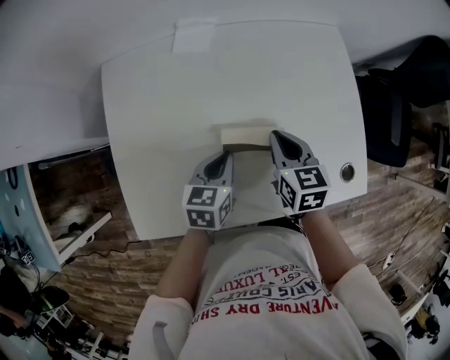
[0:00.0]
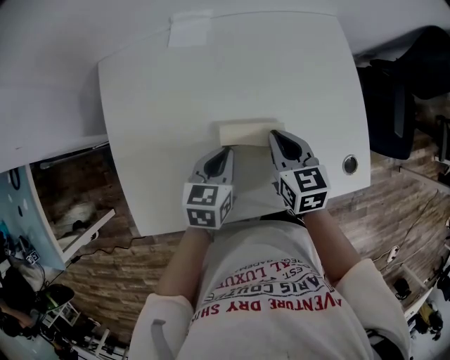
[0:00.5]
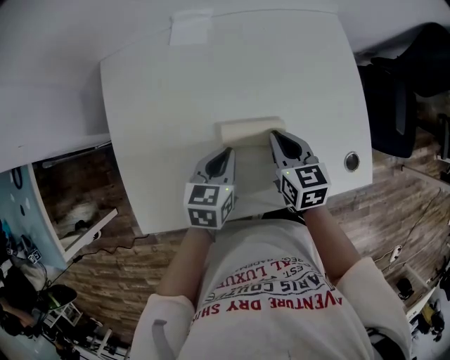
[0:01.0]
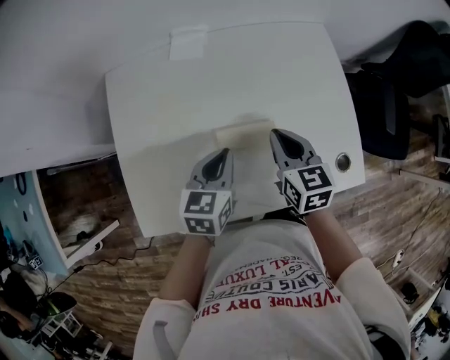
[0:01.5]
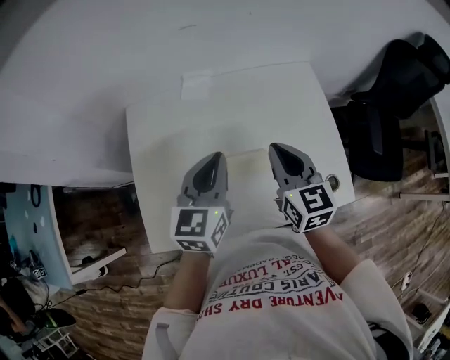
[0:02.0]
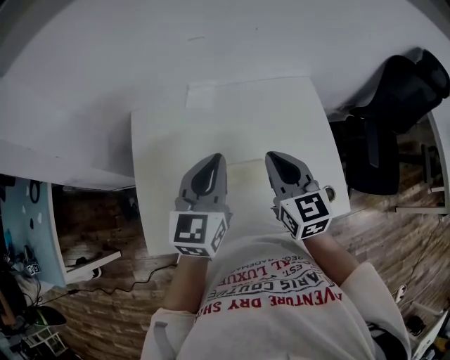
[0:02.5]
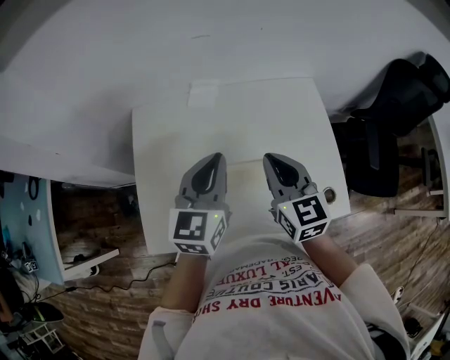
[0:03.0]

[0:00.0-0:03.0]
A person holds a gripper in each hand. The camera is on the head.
0:00.0 to 0:01.5: The right gripper moves roughly 5 cm. The left gripper travels upward by approximately 5 cm.
0:01.5 to 0:03.0: The grippers both shift upward by about 15 cm. The left gripper changes its angle by approximately 20 degrees.

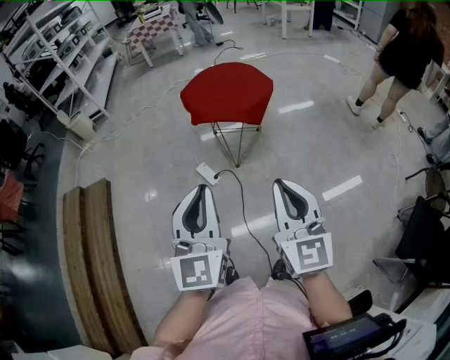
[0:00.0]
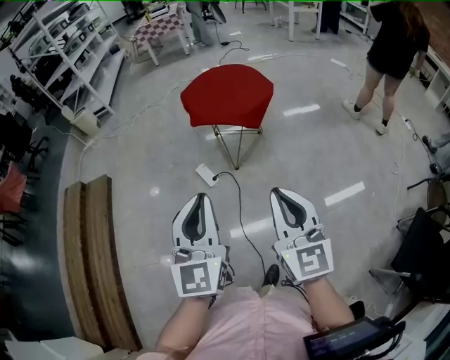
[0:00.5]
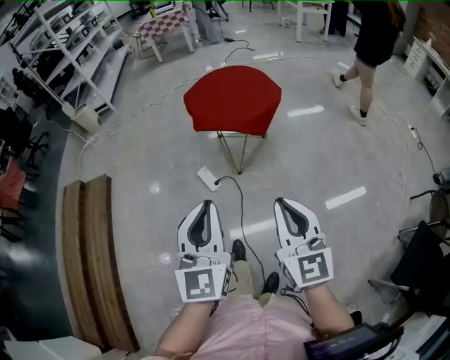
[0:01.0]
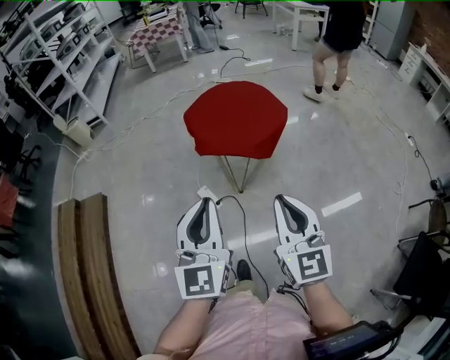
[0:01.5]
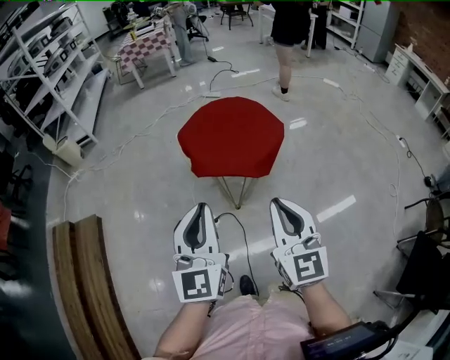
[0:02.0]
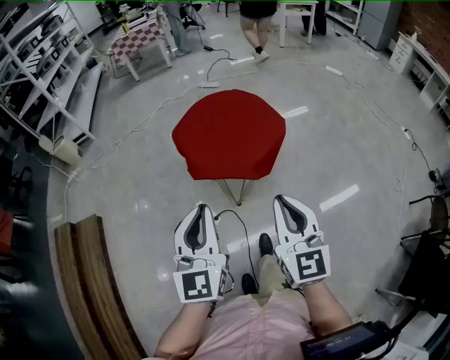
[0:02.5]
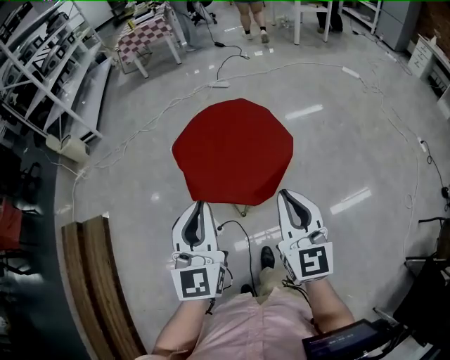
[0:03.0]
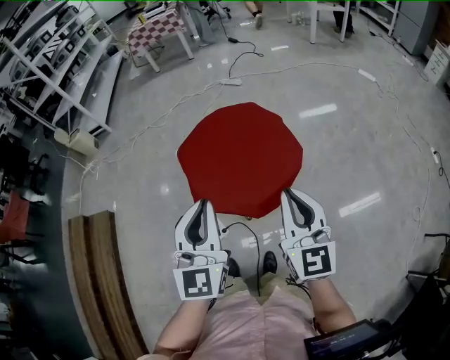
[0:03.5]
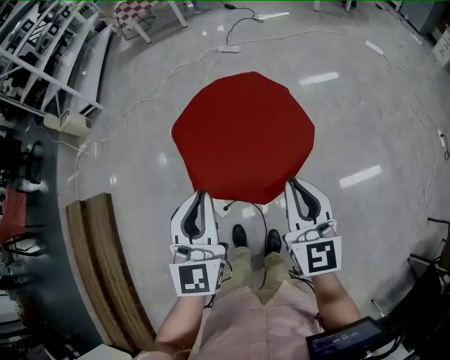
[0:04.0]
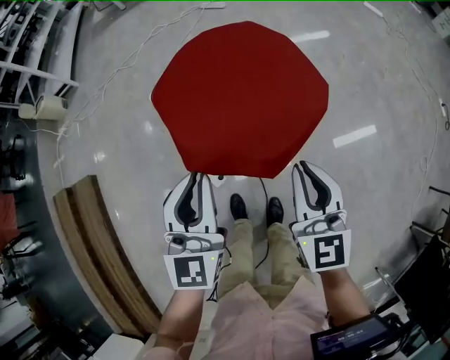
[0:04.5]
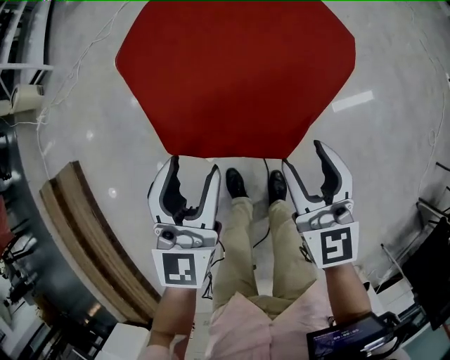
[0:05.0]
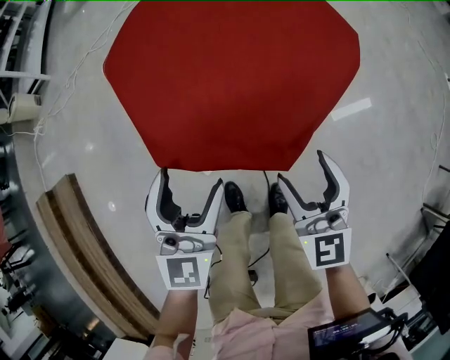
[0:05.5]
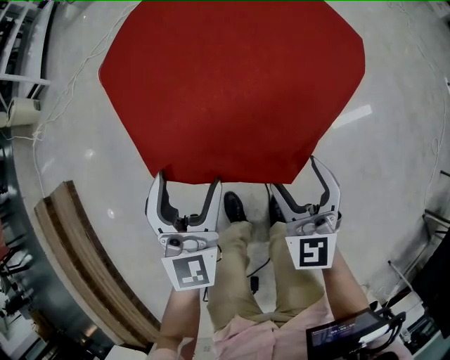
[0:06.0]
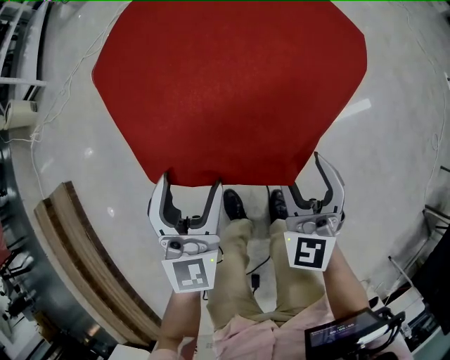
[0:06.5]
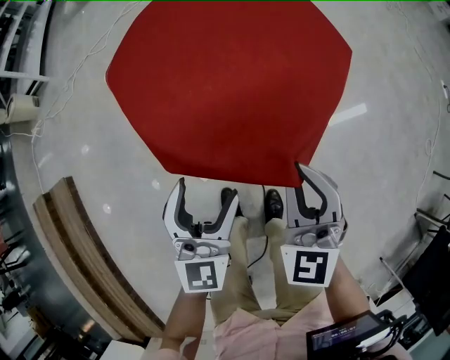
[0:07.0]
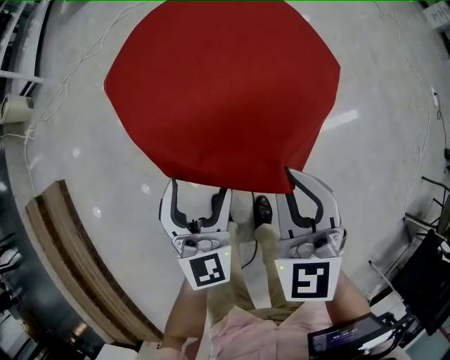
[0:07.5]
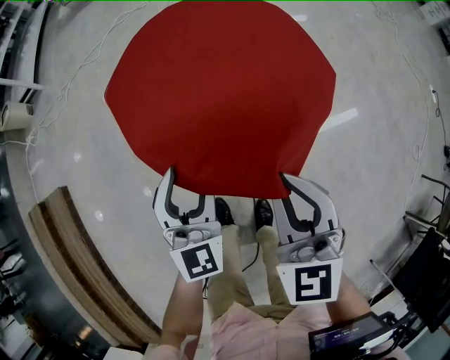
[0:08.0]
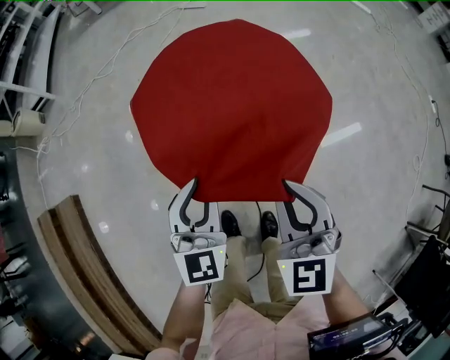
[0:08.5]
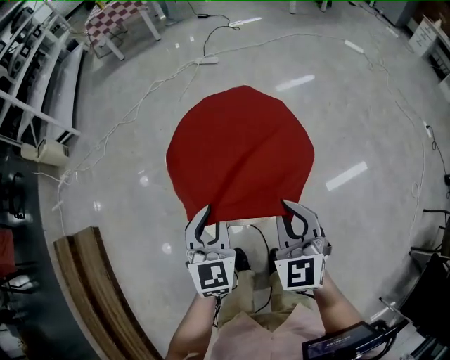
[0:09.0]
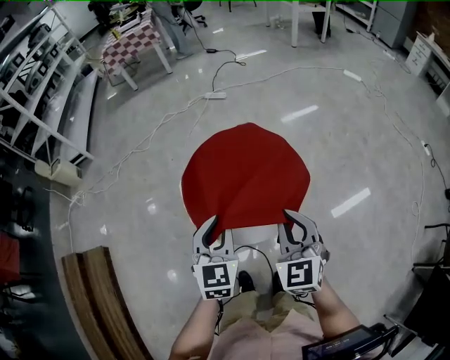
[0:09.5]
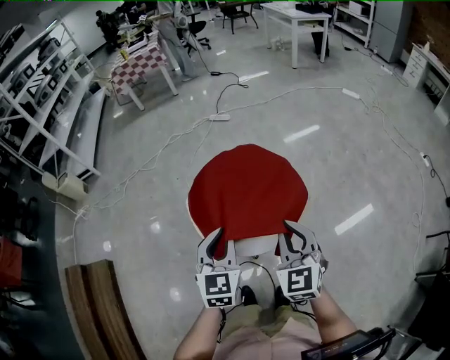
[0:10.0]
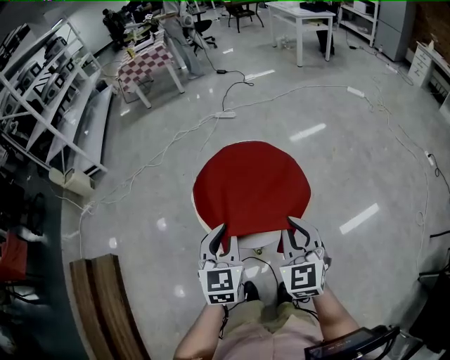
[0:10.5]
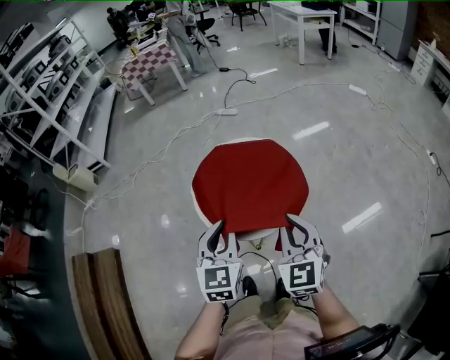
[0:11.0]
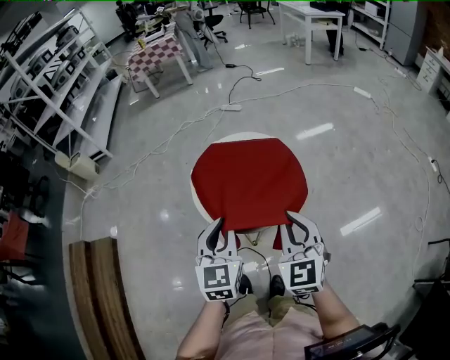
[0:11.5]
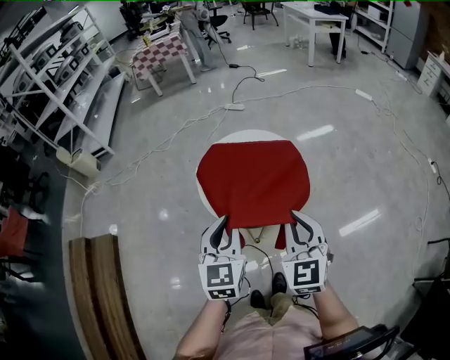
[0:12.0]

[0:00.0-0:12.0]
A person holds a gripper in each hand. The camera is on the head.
0:00.0 to 0:02.0: Both grippers move forward, about 25 cm.
0:02.0 to 0:04.0: Both grippers travel together forward, some 30 cm.
0:04.0 to 0:06.0: Both grippers travel together downward, some 35 cm. The right gripper turns by about 20 degrees, and opens up; the left gripper opens up.
0:06.0 to 0:08.0: The left gripper moves forward, about 5 cm. The right gripper is displaced upward by about 15 cm, and closes up.
0:08.0 to 0:10.0: Both grippers move upward, approximately 25 cm. The left gripper closes.
0:10.0 to 0:12.0: The grippers both shift backward by approximately 10 cm.

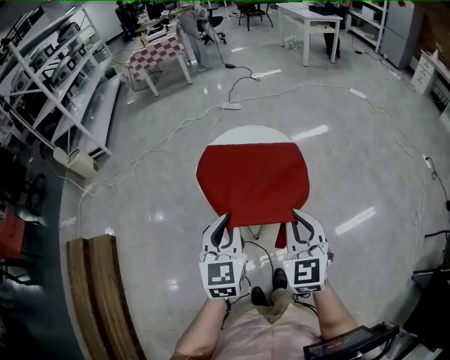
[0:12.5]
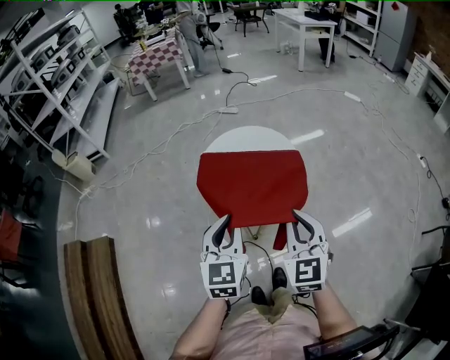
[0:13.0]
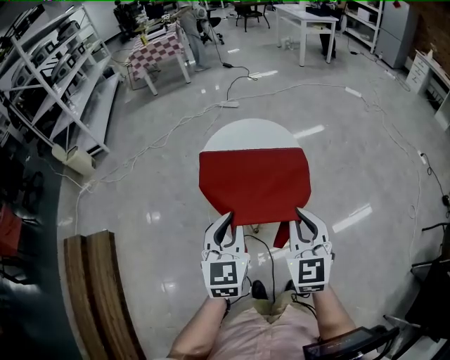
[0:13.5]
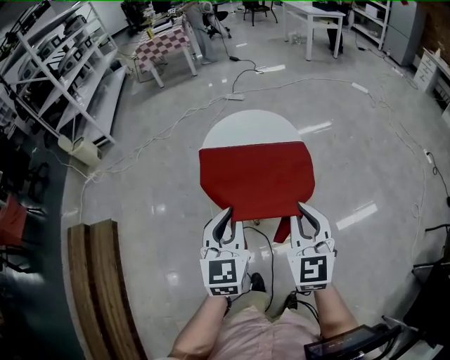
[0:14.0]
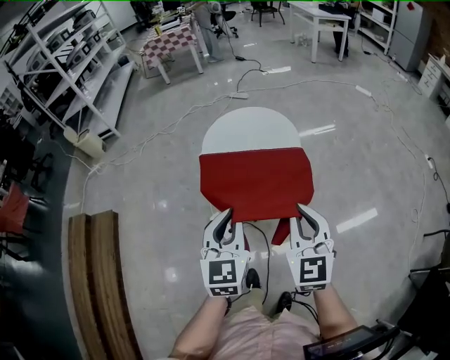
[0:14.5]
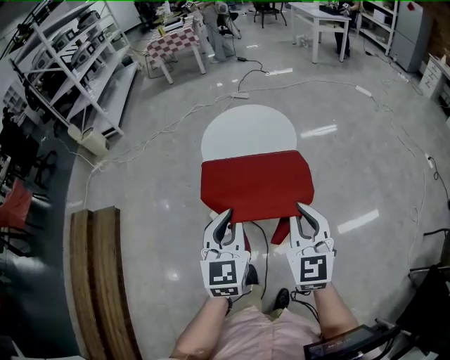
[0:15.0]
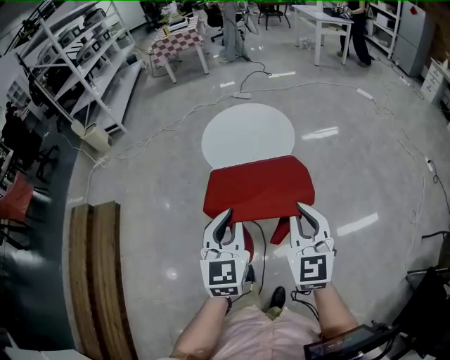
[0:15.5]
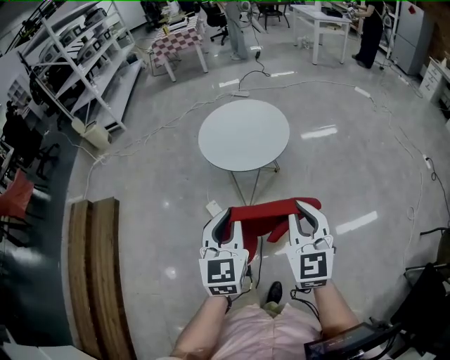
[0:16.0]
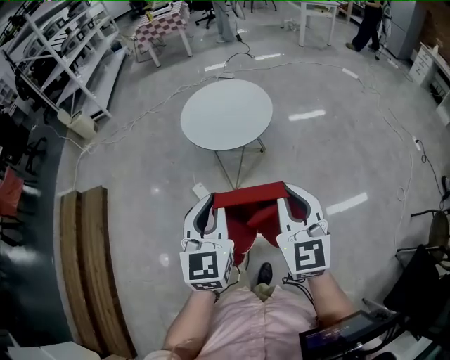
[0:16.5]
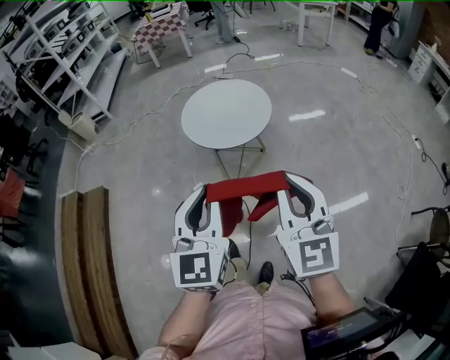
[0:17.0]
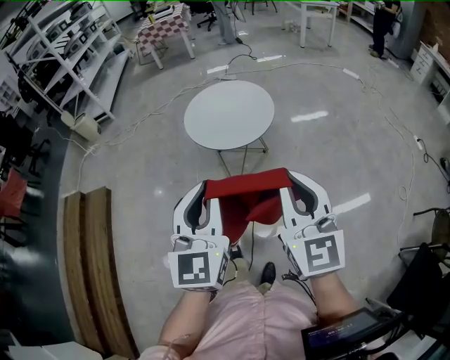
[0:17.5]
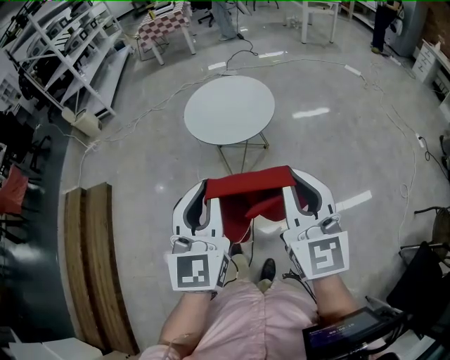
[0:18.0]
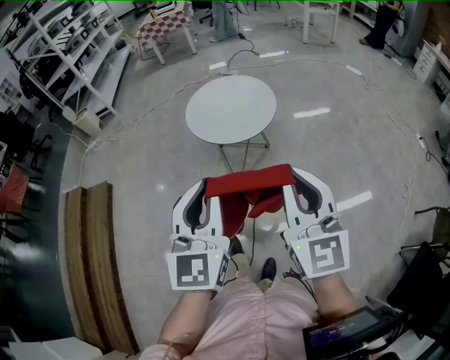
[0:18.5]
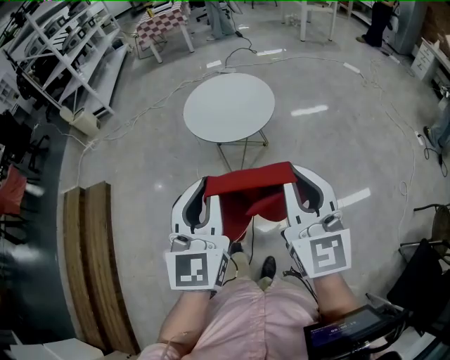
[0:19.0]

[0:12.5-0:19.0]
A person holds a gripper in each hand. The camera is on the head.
0:12.5 to 0:14.5: The grippers both shift backward by some 15 cm.
0:14.5 to 0:17.0: The grippers both shift backward, upward and to the right by about 20 cm.
0:17.0 to 0:19.0: There are only small adjustments of the grippers.

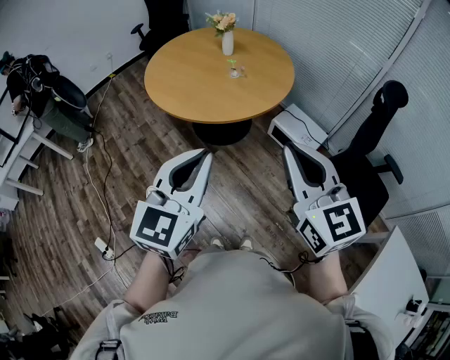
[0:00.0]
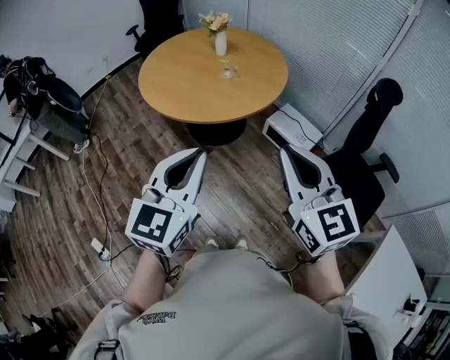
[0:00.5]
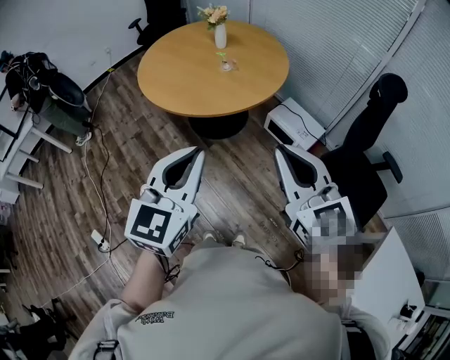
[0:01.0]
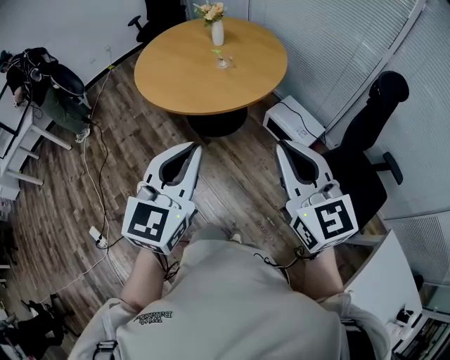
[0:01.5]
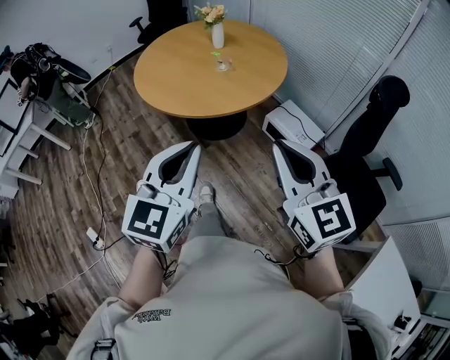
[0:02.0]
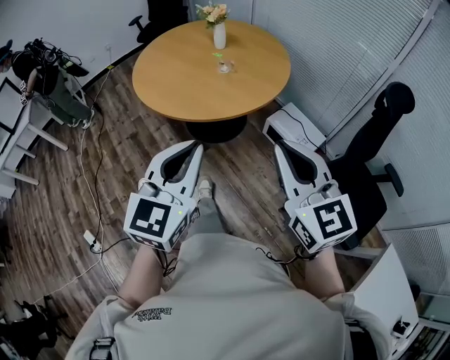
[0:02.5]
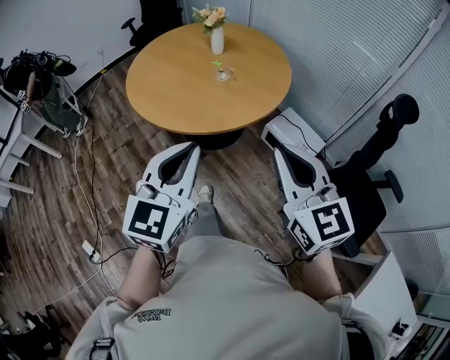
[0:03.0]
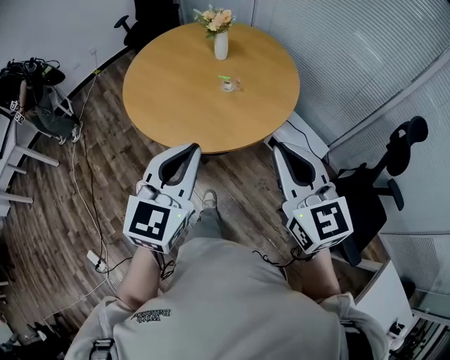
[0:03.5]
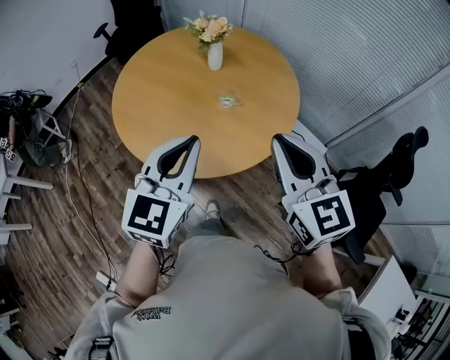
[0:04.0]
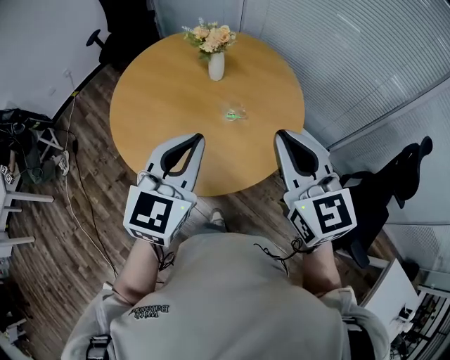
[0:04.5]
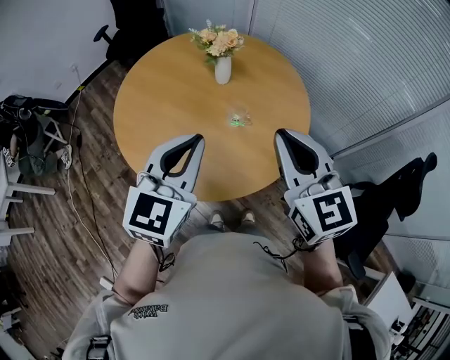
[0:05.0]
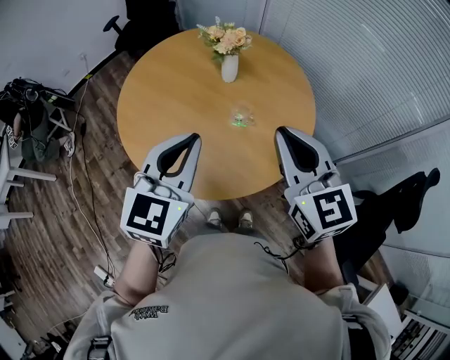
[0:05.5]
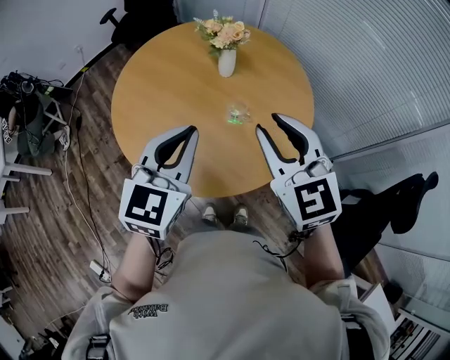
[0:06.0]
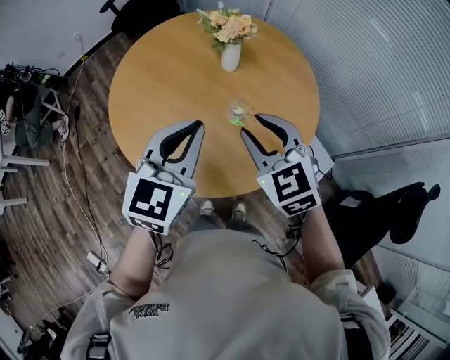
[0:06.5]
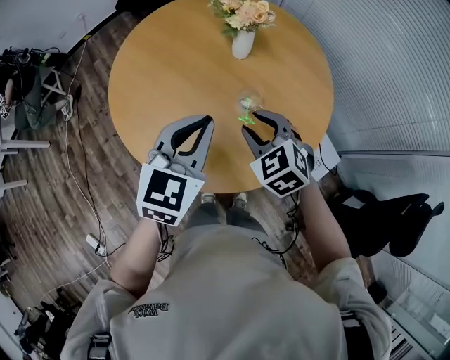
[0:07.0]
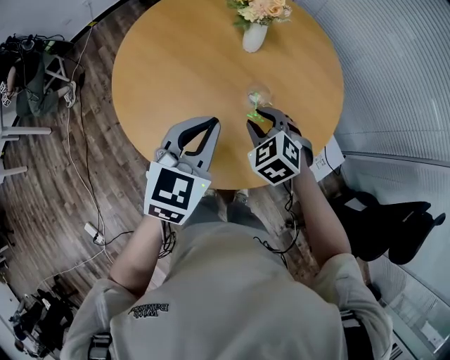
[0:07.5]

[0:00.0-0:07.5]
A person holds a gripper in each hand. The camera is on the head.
0:00.0 to 0:02.0: The grippers both shift to the right by some 10 cm.
0:02.0 to 0:04.0: The grippers both shift forward by roughly 35 cm.
0:04.0 to 0:05.5: The two grippers go roughly 10 cm forward.
0:05.5 to 0:07.5: The left gripper goes roughly 15 cm downward and forward. Meanwhile the right gripper shifts about 30 cm downward and forward, tilts its fingers about 40 degrees downward, and opens.
